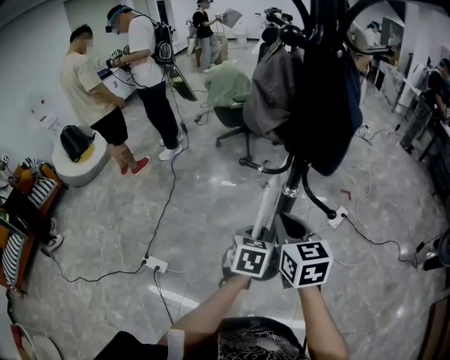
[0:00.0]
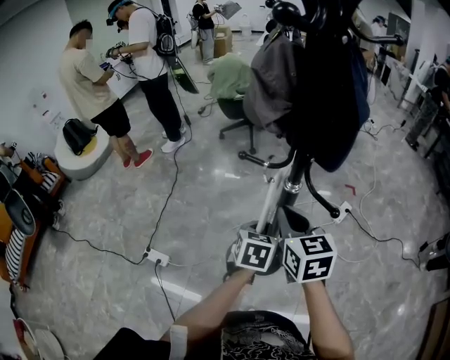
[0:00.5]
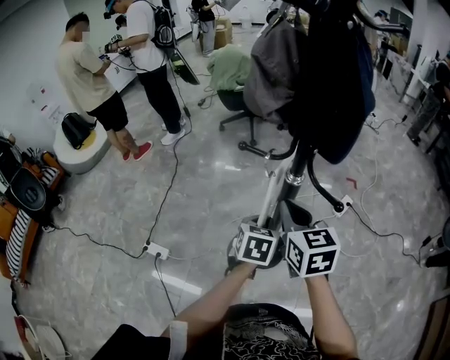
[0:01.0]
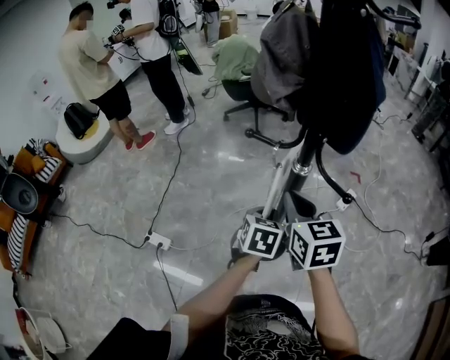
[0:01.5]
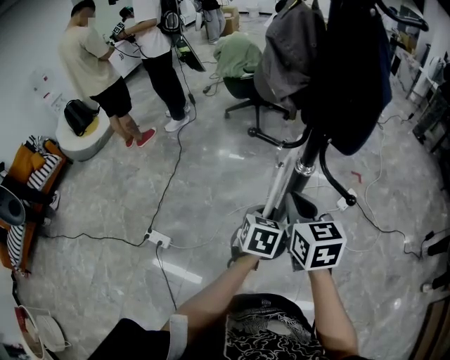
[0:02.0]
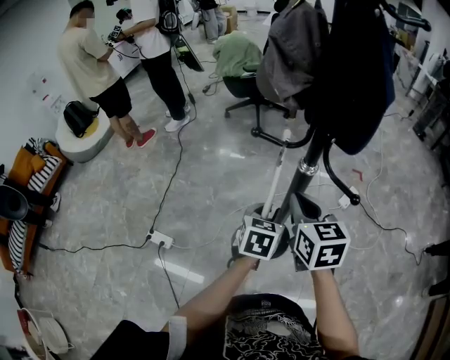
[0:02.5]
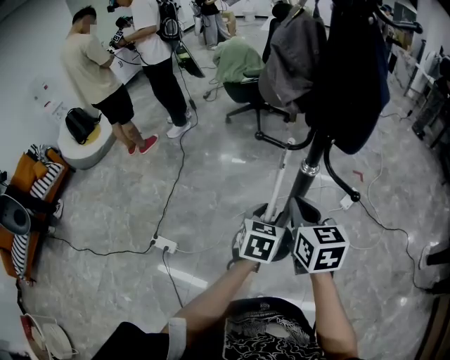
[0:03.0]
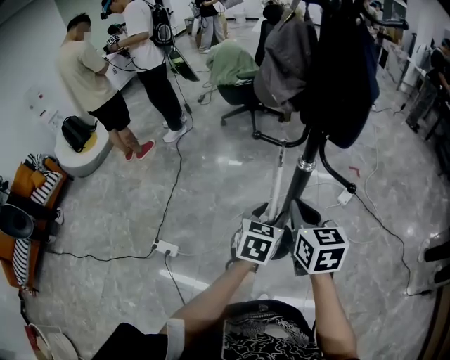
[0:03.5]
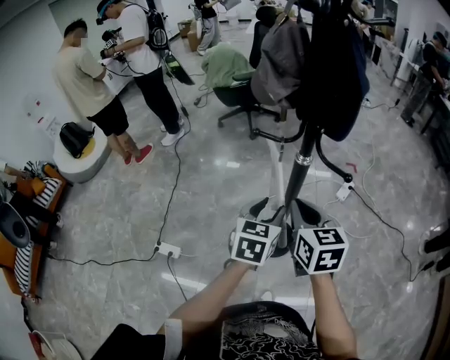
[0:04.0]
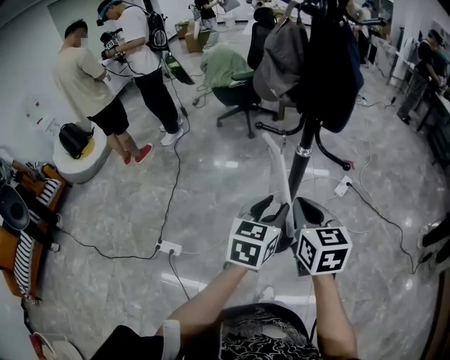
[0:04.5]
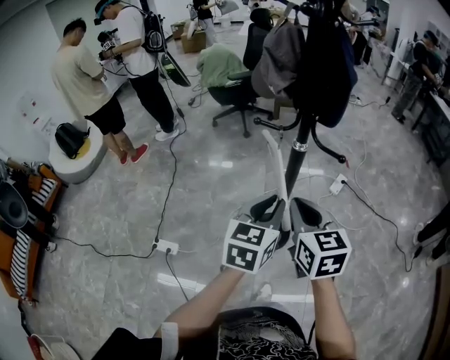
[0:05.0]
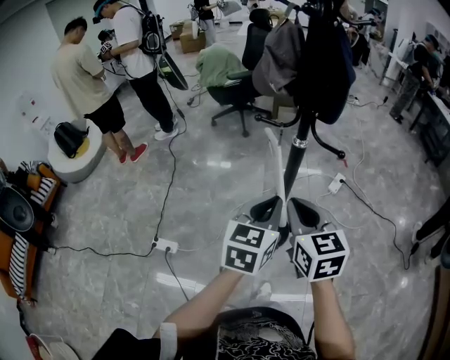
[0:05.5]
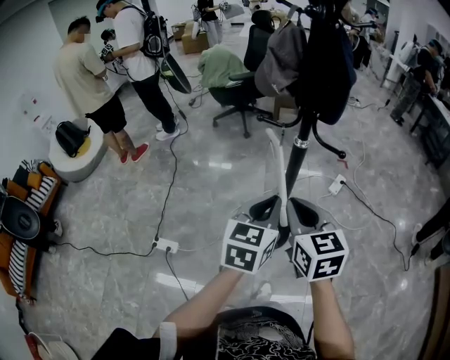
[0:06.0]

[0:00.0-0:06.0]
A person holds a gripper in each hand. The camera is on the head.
0:00.0 to 0:02.0: The left gripper heads downward, covering roughly 5 cm.
0:02.0 to 0:04.0: The right gripper moves backward, roughly 5 cm. The left gripper goes roughly 10 cm upward and backward, and opens its fingers.
0:04.0 to 0:06.0: The left gripper moves backward and upward, approximately 15 cm, and closes up. Meanwhile the right gripper goes approximately 10 cm backward.

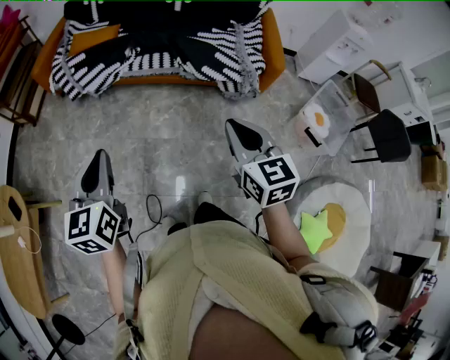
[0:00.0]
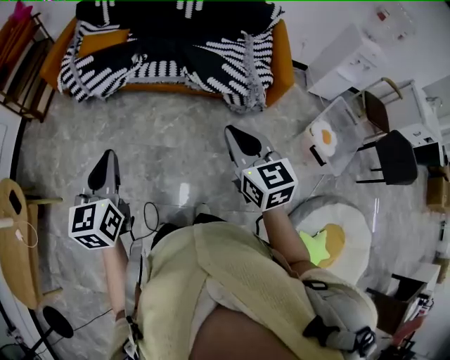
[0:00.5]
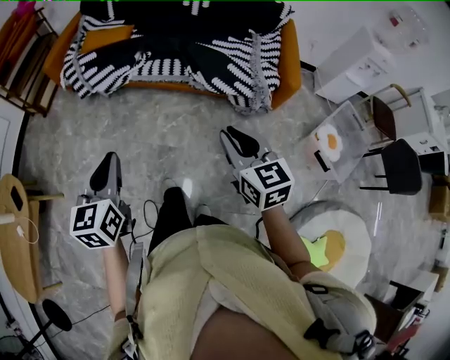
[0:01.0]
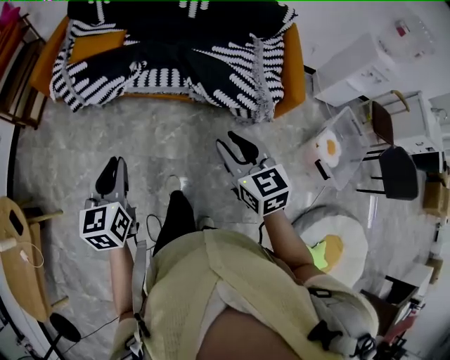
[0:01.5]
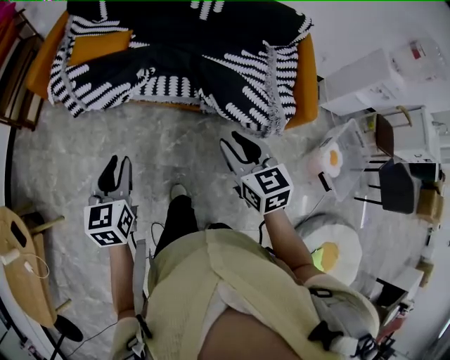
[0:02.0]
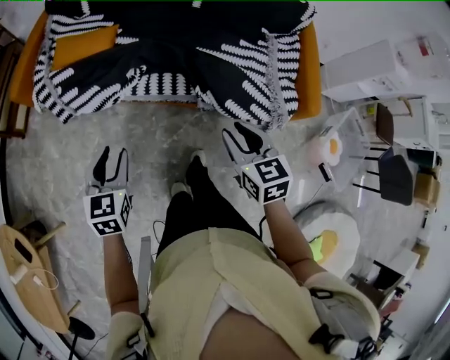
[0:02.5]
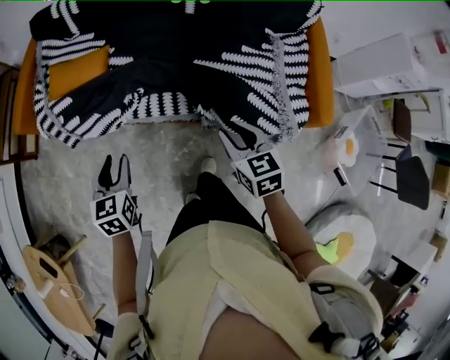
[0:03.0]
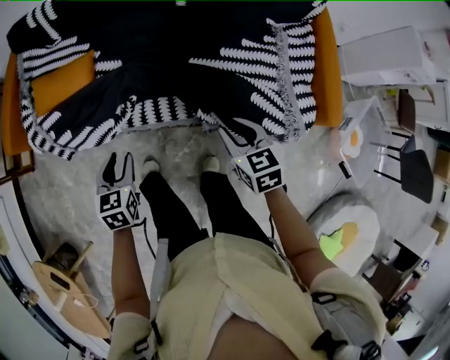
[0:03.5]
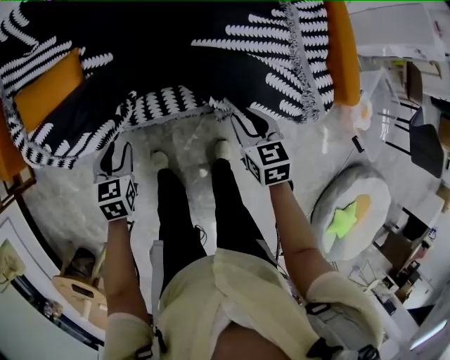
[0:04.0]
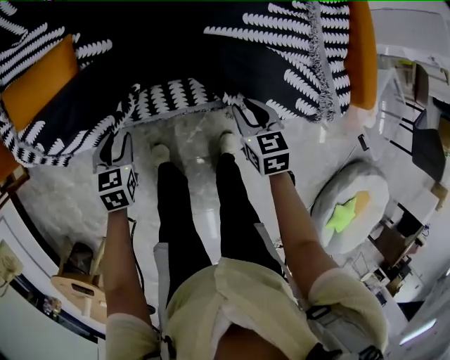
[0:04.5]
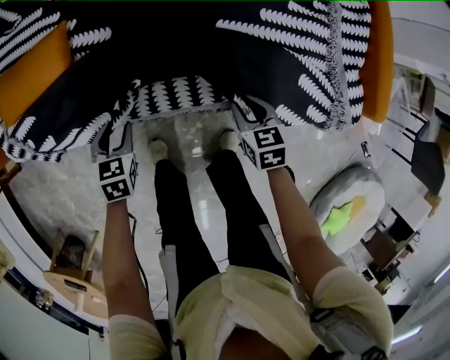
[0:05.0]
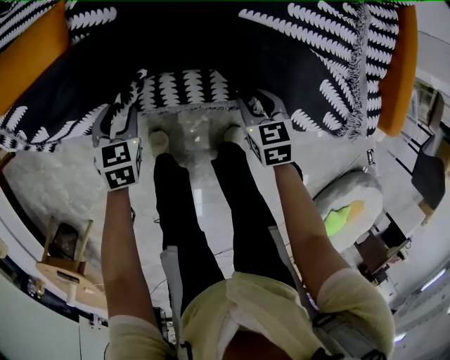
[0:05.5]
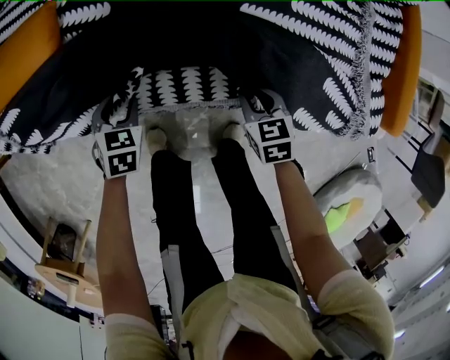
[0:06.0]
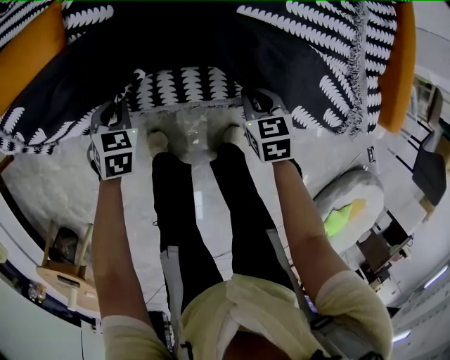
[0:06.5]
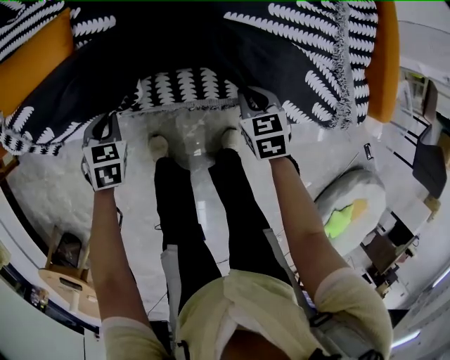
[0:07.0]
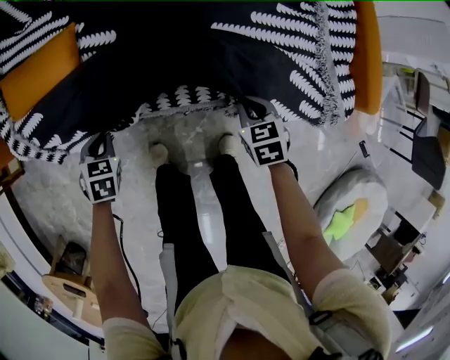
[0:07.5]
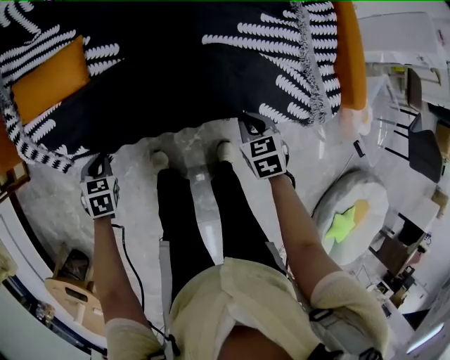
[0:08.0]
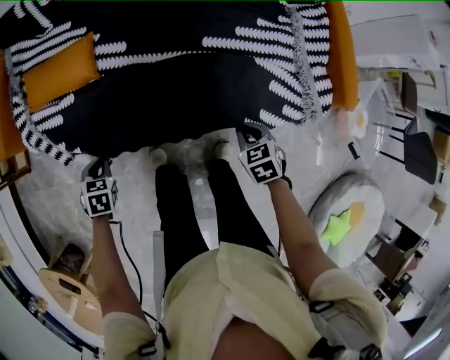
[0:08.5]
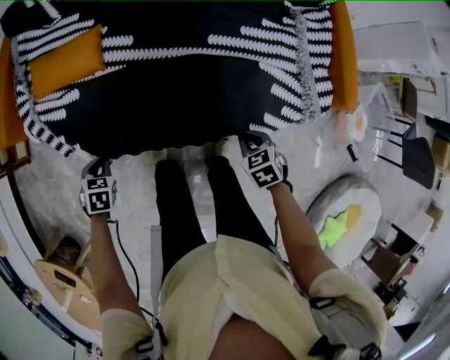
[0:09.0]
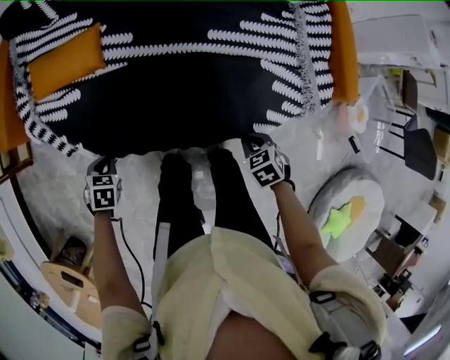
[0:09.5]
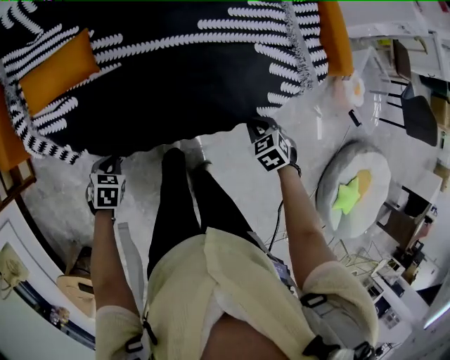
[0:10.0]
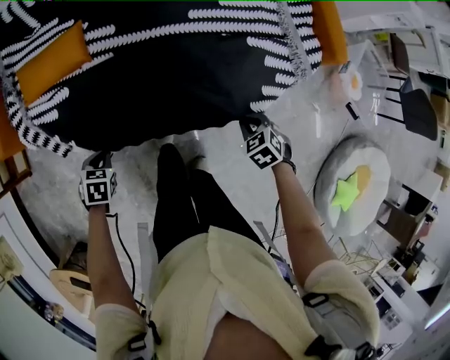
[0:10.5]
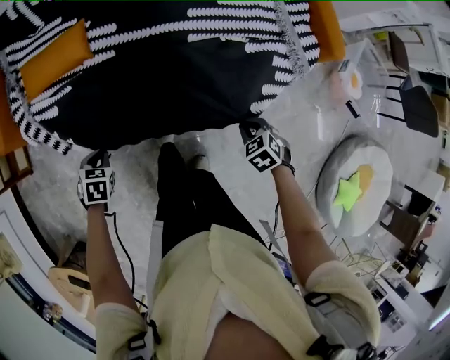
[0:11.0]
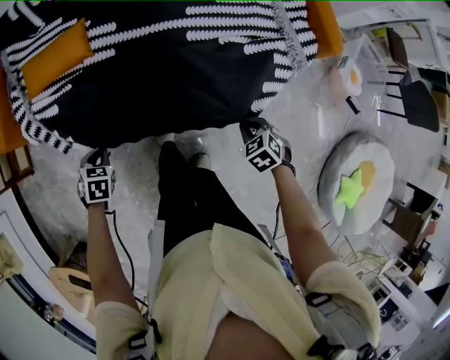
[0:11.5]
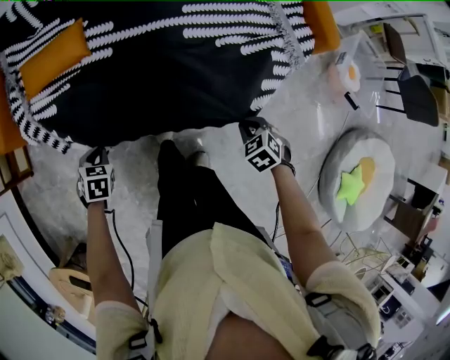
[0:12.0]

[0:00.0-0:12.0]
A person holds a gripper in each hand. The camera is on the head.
0:00.0 to 0:02.0: The left gripper moves forward and downward, approximately 30 cm, and opens its fingers. Meanwhile the right gripper is displaced forward by roughly 30 cm, and opens.
0:02.0 to 0:04.0: The two grippers go about 40 cm forward and downward. The right gripper changes its angle by roughly 30 degrees. Meanwhile the left gripper turns by about 30 degrees.
0:04.0 to 0:06.0: The grippers both shift downward by roughly 20 cm.
0:06.0 to 0:08.0: The left gripper travels upward, to the left and backward by some 20 cm, and closes its fingers; the right gripper goes some 15 cm upward and backward.
0:08.0 to 0:10.0: The left gripper heads backward, covering some 10 cm, and rotates approximately 20 degrees, while the right gripper shifts roughly 15 cm backward.
0:10.0 to 0:12.0: The right gripper moves backward, about 10 cm. Meanwhile the left gripper travels backward by approximately 5 cm.

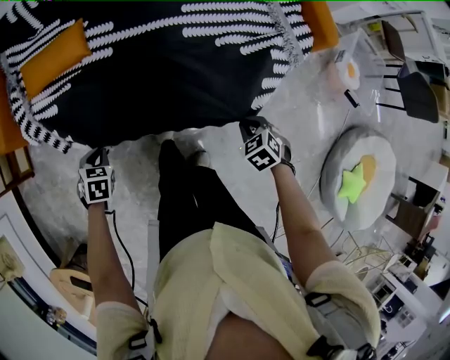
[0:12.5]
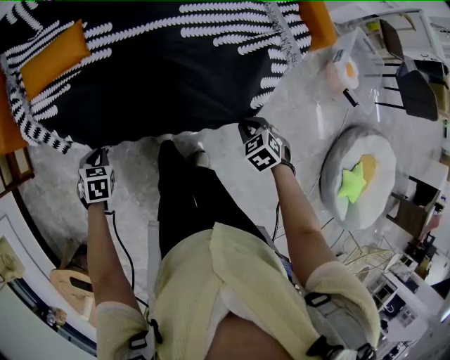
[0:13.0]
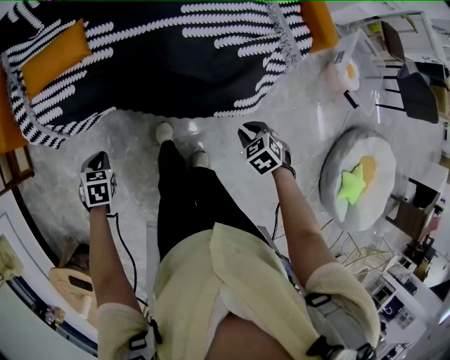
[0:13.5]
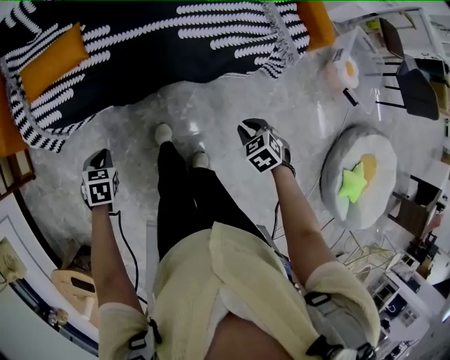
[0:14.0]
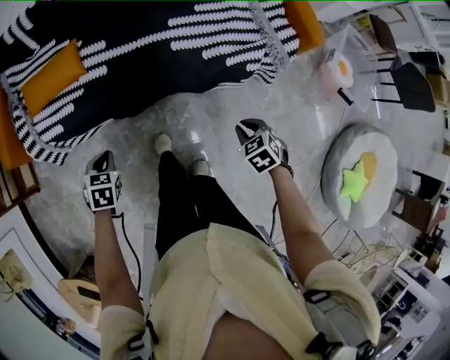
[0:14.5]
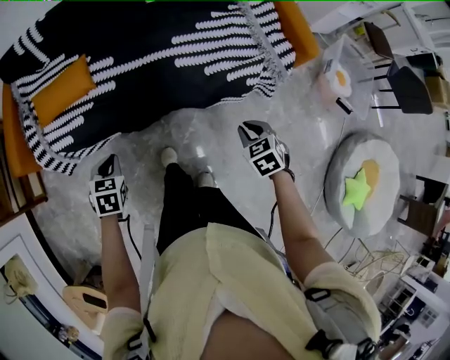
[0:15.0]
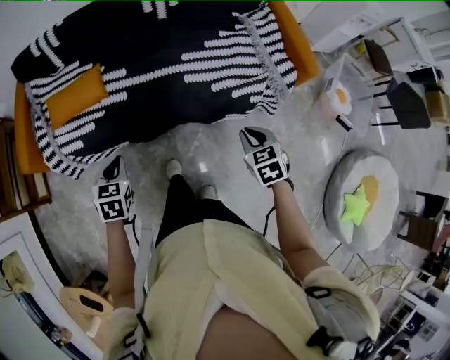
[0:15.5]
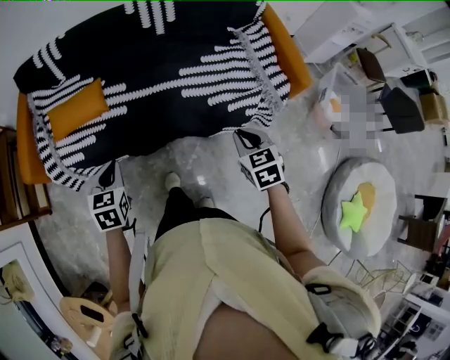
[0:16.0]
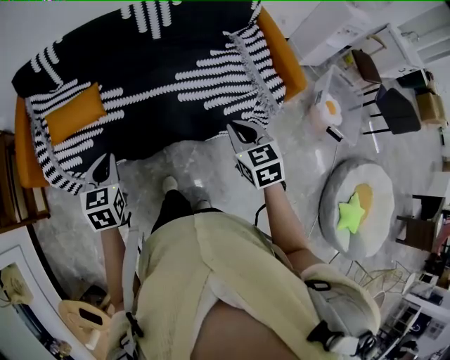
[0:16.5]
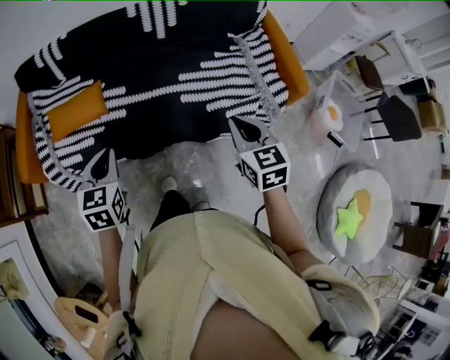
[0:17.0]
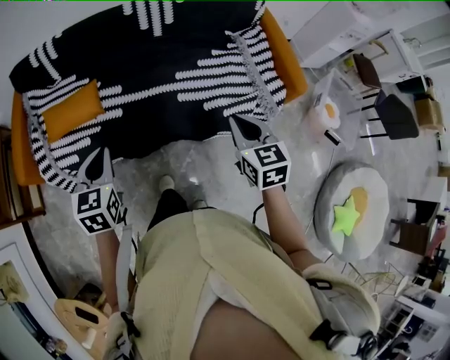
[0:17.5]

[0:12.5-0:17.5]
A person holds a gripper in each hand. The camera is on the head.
0:12.5 to 0:15.0: The left gripper travels upward and to the right by approximately 10 cm. The right gripper moves upward, approximately 10 cm.
0:15.0 to 0:17.5: The right gripper goes roughly 25 cm upward and forward, and changes its angle by some 30 degrees; the left gripper is displaced upward by roughly 20 cm, and swivels some 30 degrees.

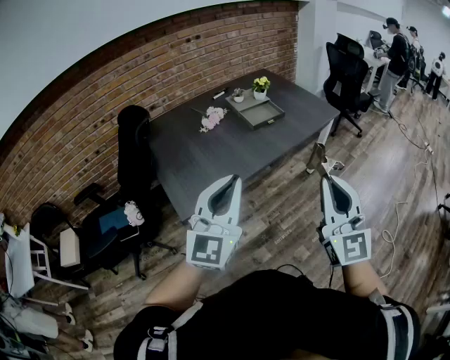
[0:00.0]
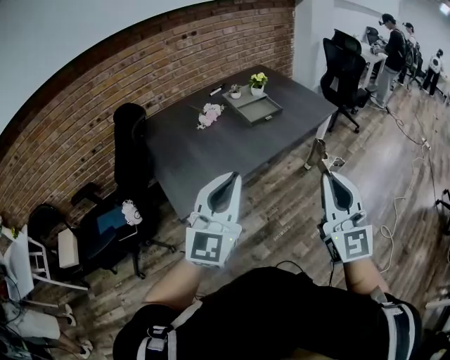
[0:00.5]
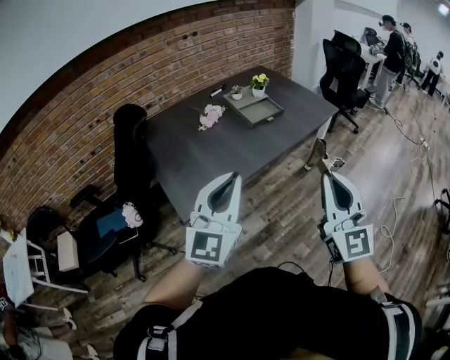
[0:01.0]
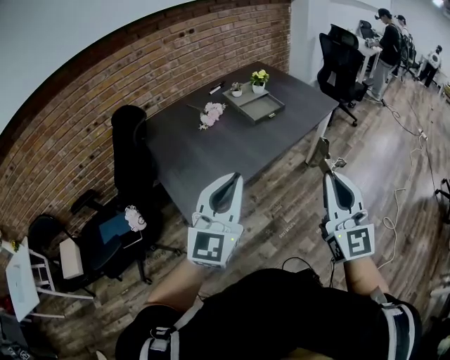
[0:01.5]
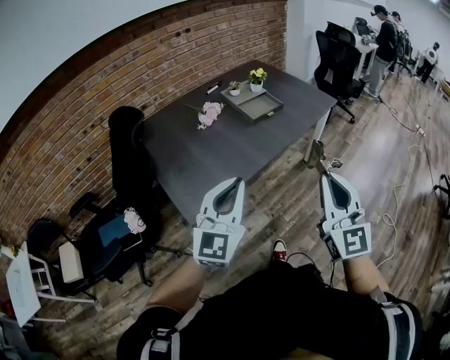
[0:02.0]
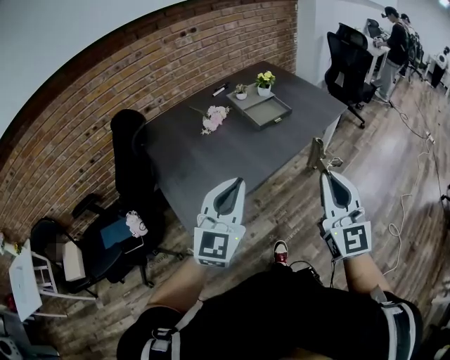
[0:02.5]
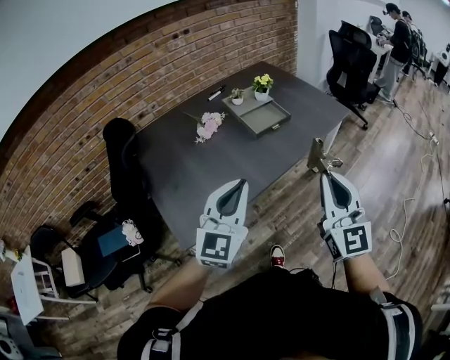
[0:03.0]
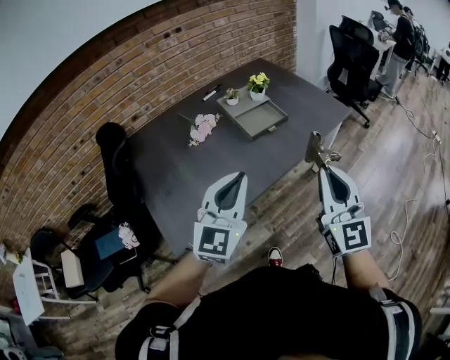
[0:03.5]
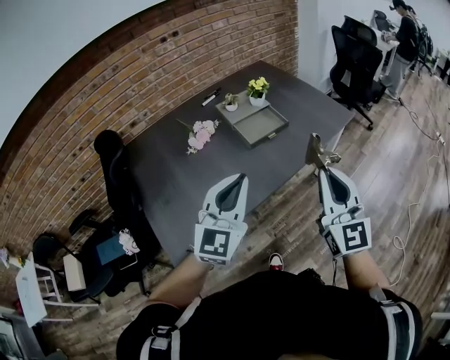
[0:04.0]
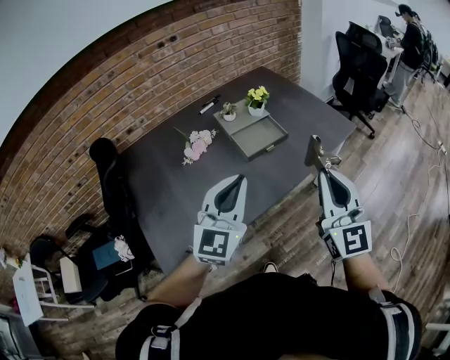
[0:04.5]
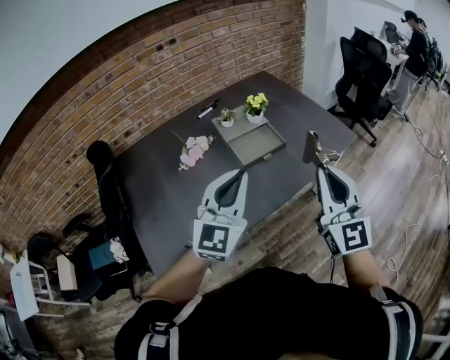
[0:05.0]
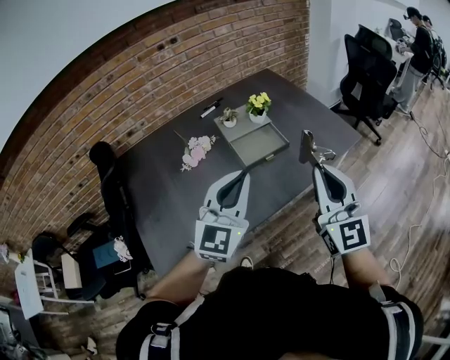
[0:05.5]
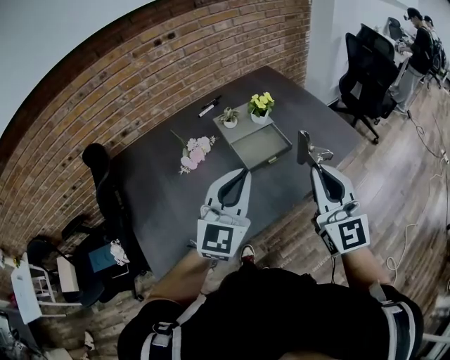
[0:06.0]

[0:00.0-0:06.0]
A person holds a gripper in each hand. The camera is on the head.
0:00.0 to 0:02.0: The grippers both shift to the left by some 5 cm.
0:02.0 to 0:04.0: The grippers both shift forward by some 25 cm.
0:04.0 to 0:06.0: Both grippers travel together forward, about 15 cm.
